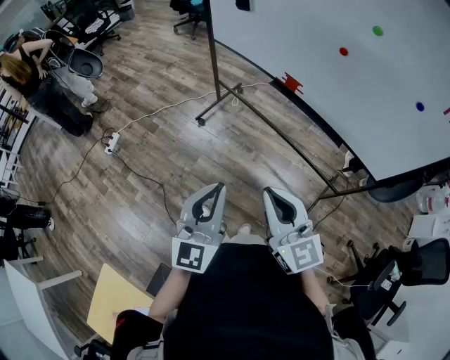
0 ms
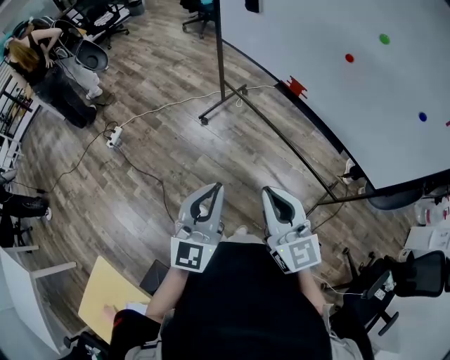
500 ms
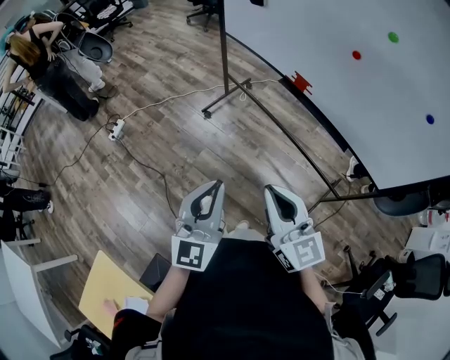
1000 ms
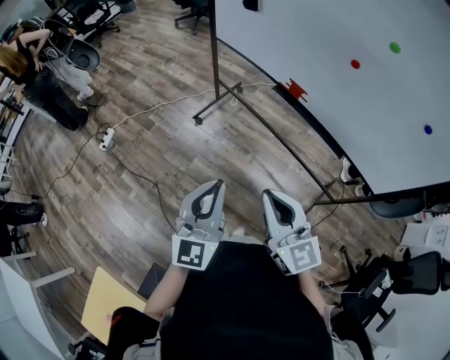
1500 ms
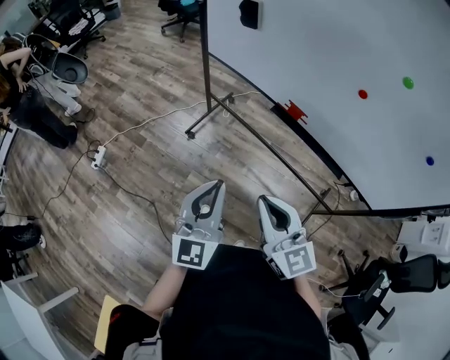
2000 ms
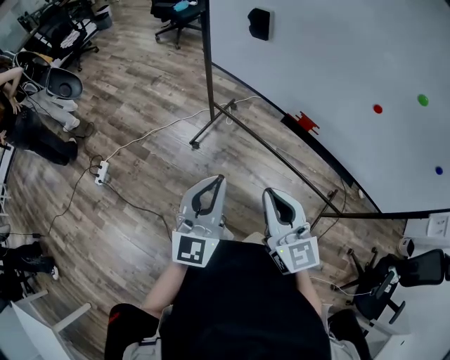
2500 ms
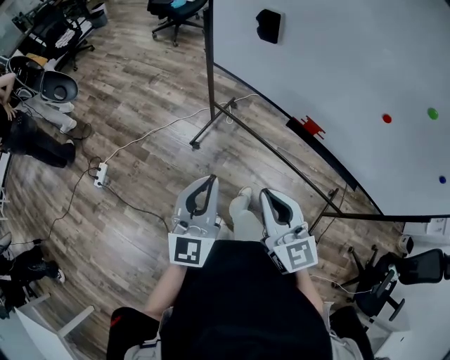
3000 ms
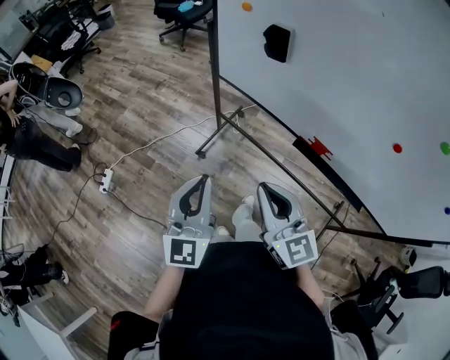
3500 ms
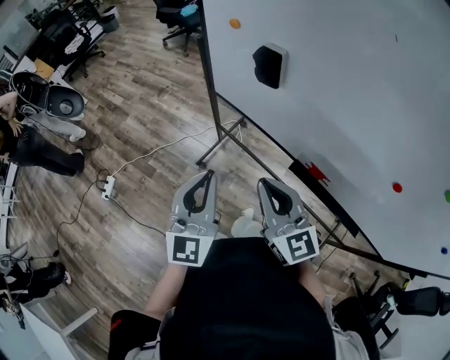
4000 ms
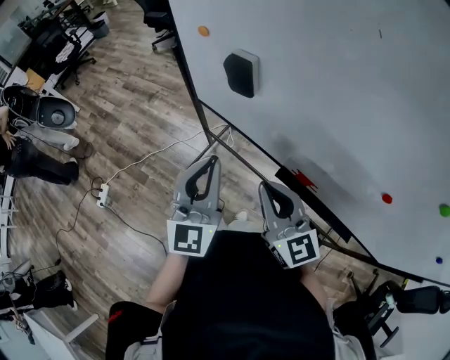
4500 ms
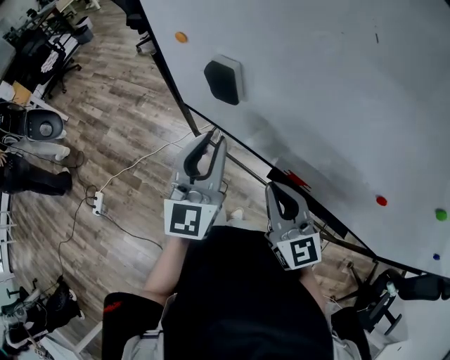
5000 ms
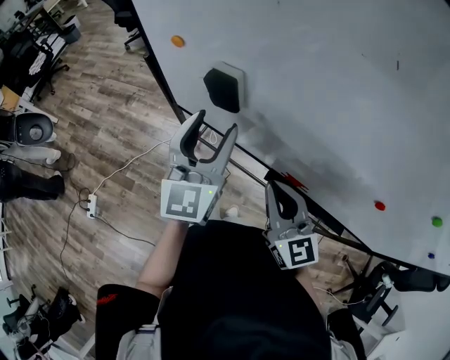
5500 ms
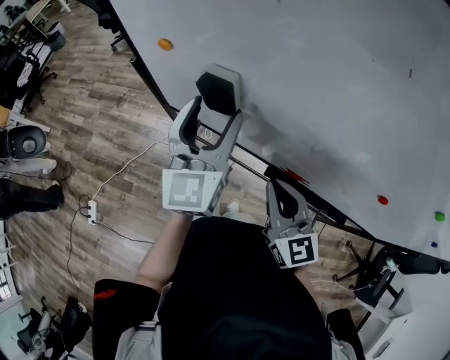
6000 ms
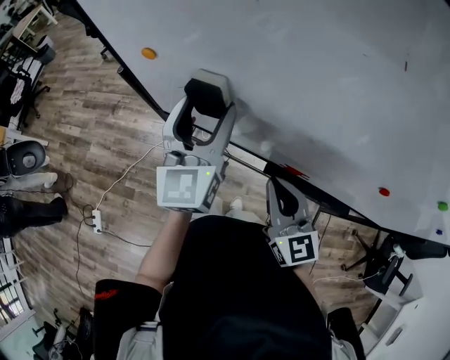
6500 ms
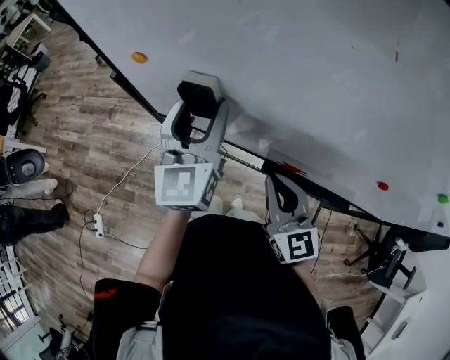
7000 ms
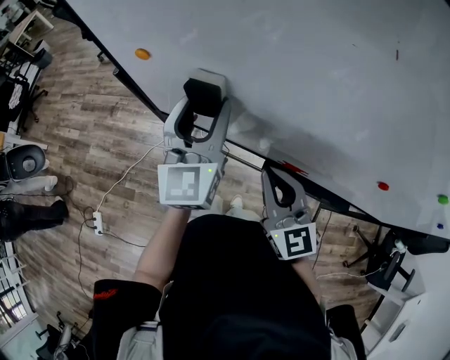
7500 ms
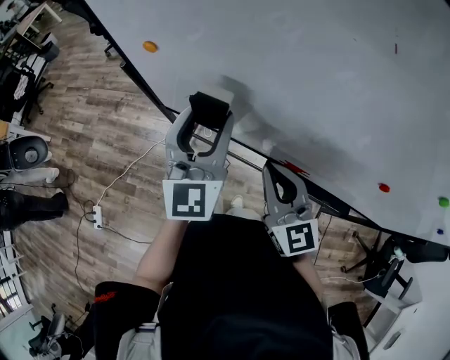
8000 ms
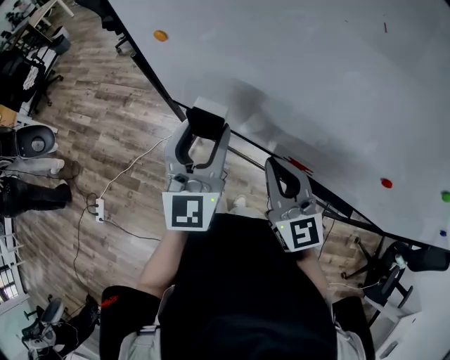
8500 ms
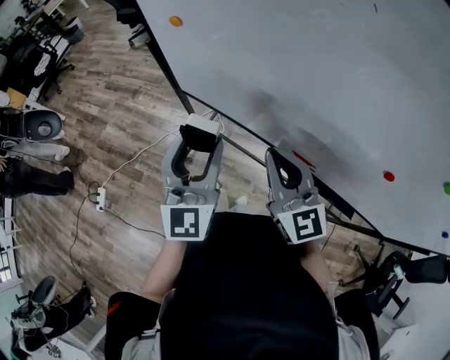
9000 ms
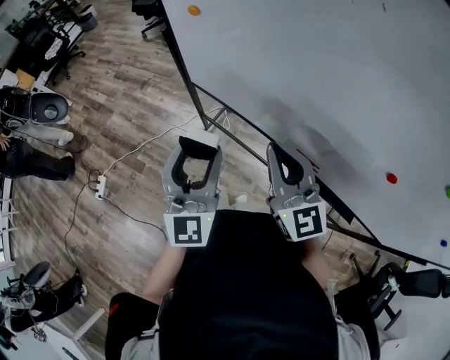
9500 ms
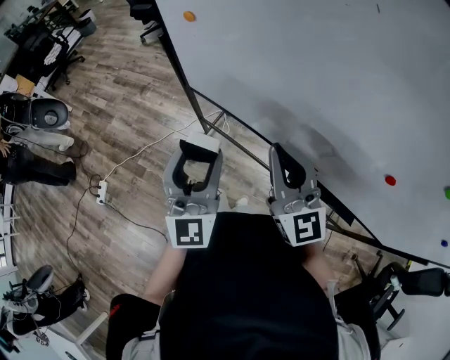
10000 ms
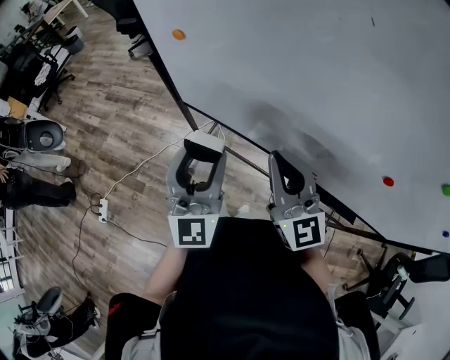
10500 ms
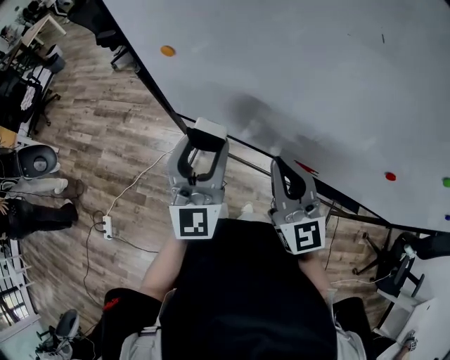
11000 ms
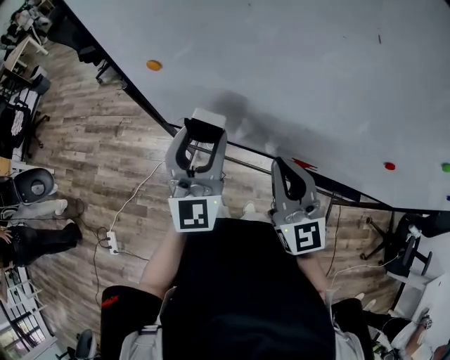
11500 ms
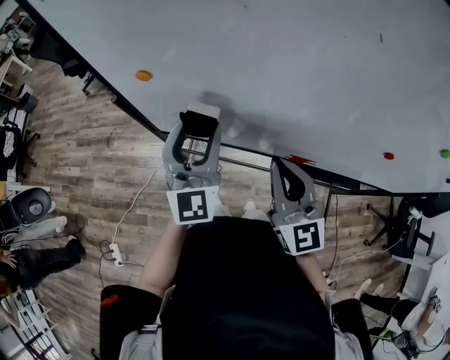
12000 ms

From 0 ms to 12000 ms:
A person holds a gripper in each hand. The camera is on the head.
From 0 ms to 2000 ms: Both grippers move forward, some 15 cm.
From 2000 ms to 4000 ms: Both grippers move forward, roughly 30 cm.
From 4000 ms to 6000 ms: The left gripper is displaced forward and to the right by approximately 25 cm, and opens its fingers. The right gripper travels to the right and forward by some 15 cm, and changes its angle by approximately 20 degrees.
From 6000 ms to 8000 ms: The grippers stay close to where they were, moving slightly.
From 8000 ms to 10000 ms: The right gripper moves upward, about 5 cm; the left gripper heads backward and to the left, covering about 15 cm.
From 10000 ms to 12000 ms: The left gripper travels forward by about 15 cm, and rotates roughly 20 degrees. The right gripper rotates about 30 degrees.

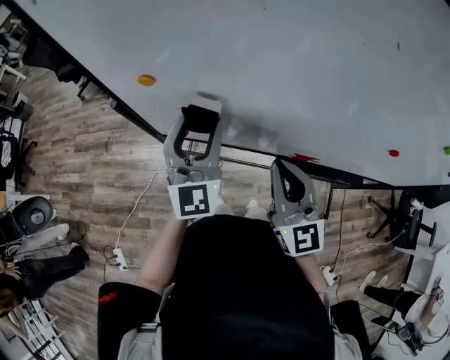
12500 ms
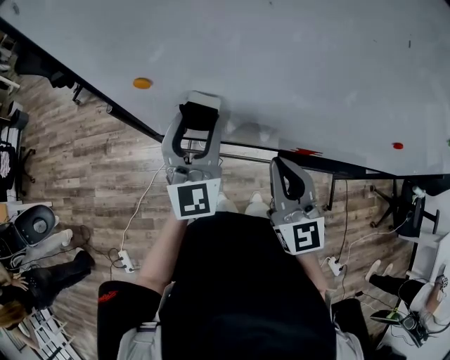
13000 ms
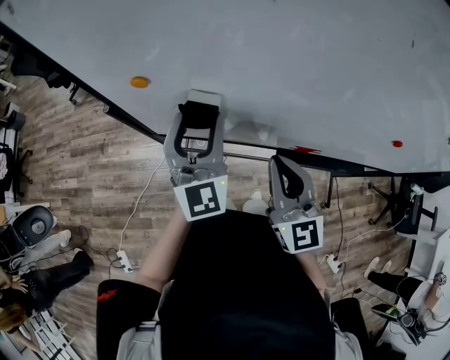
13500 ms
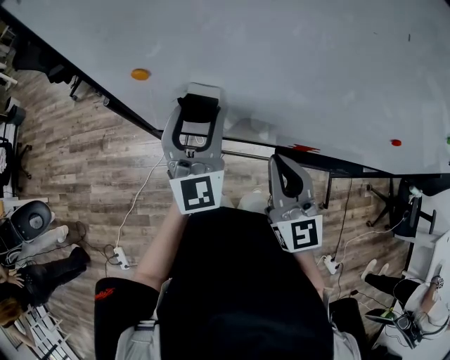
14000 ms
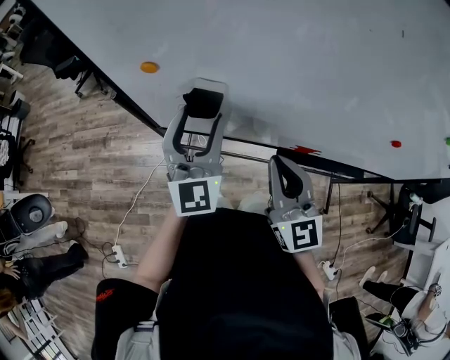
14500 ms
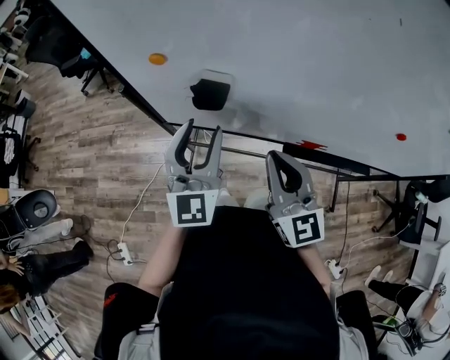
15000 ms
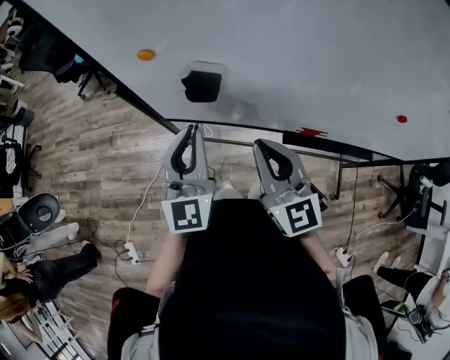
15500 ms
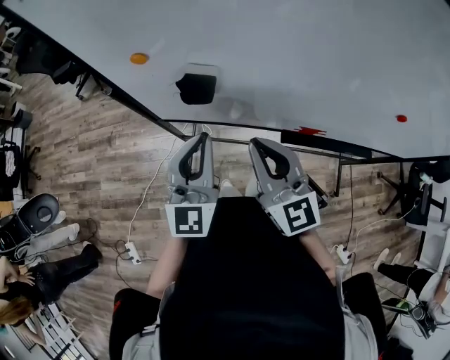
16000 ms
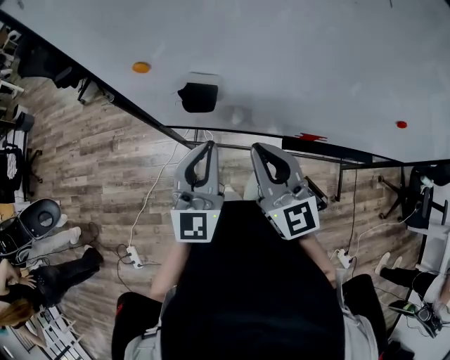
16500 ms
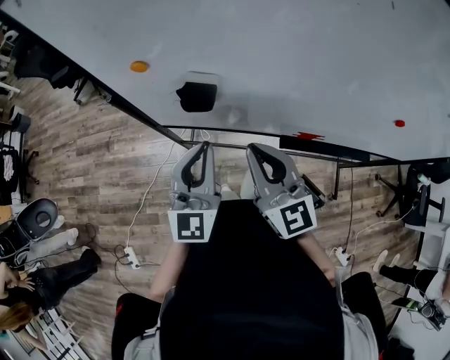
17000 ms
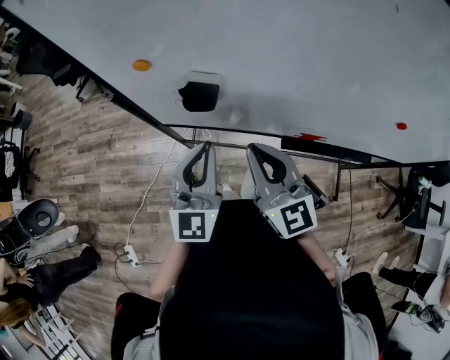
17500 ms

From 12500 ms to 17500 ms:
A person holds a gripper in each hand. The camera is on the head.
From 12500 ms to 15000 ms: The left gripper travels backward by about 5 cm.
From 15000 ms to 17500 ms: The left gripper closes.

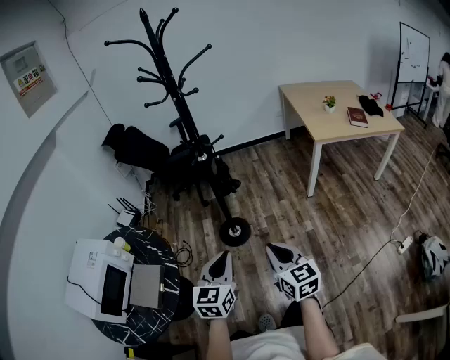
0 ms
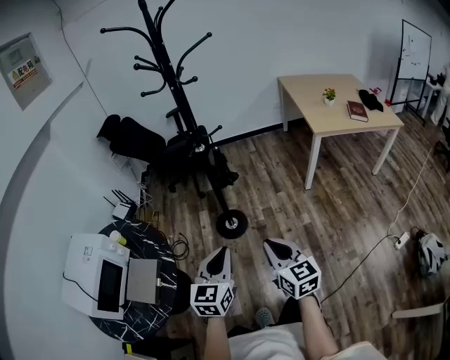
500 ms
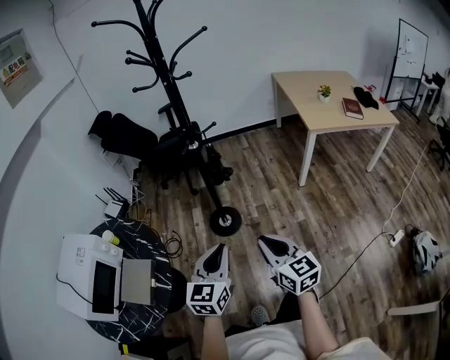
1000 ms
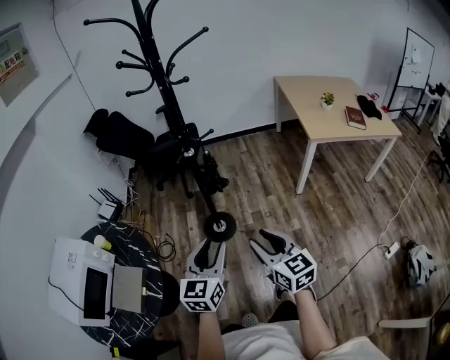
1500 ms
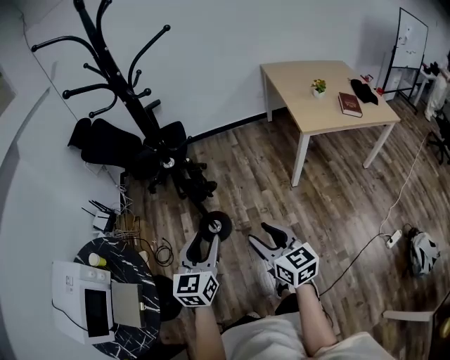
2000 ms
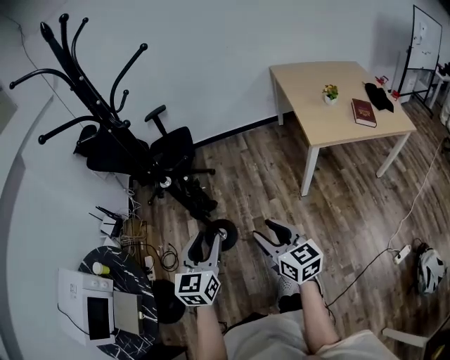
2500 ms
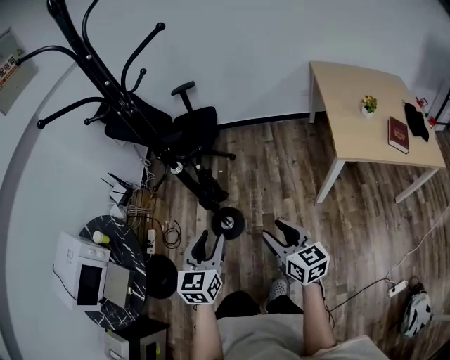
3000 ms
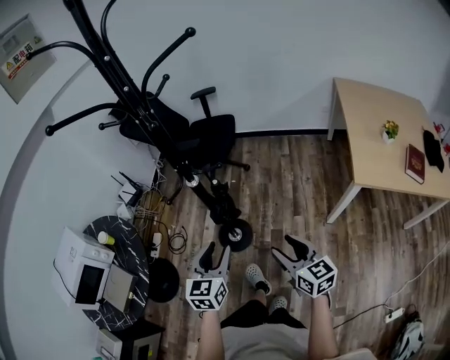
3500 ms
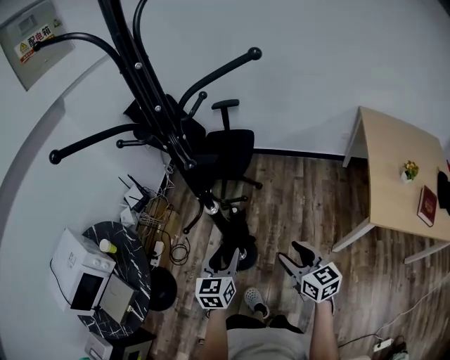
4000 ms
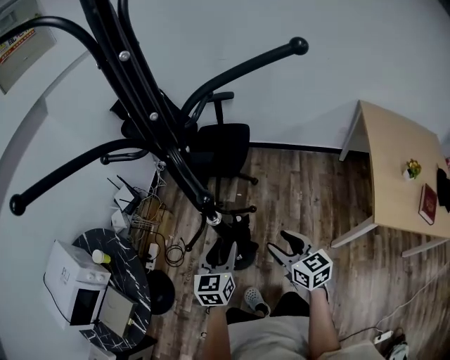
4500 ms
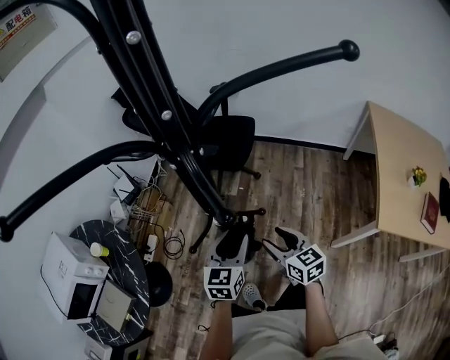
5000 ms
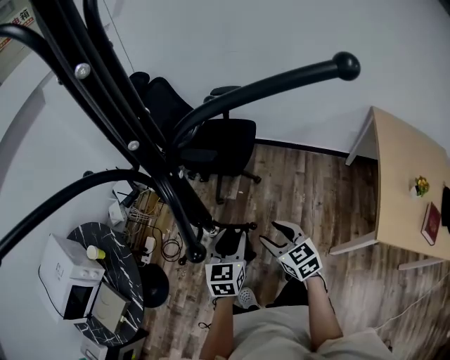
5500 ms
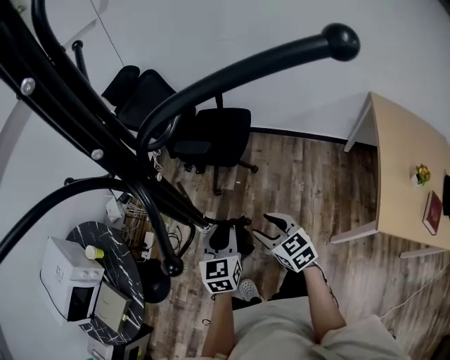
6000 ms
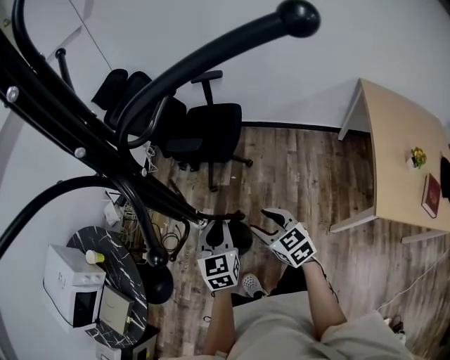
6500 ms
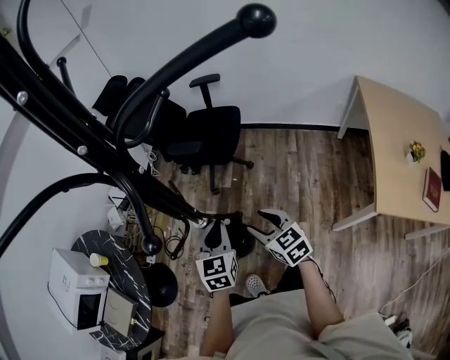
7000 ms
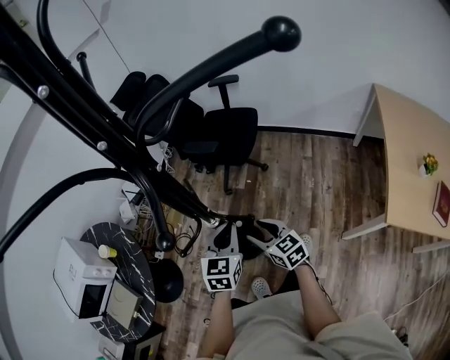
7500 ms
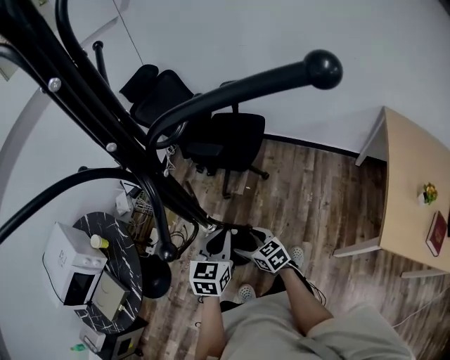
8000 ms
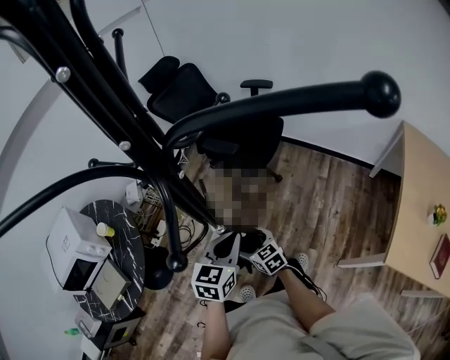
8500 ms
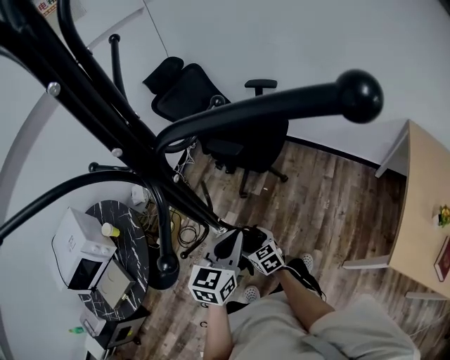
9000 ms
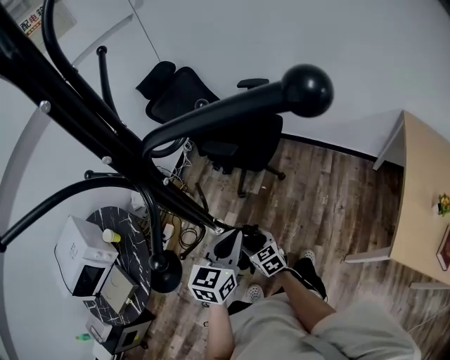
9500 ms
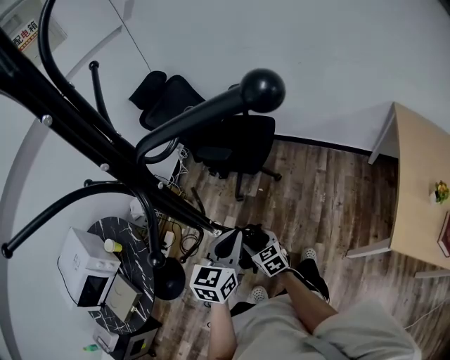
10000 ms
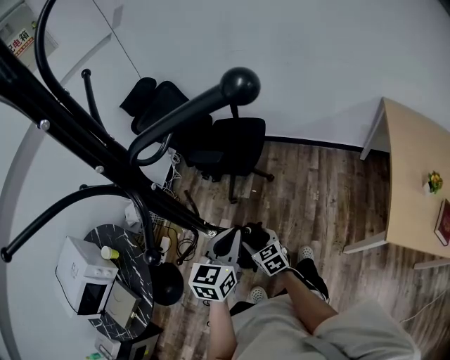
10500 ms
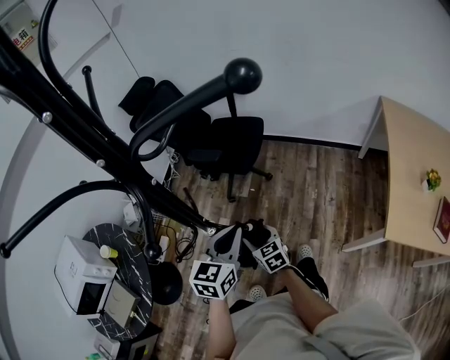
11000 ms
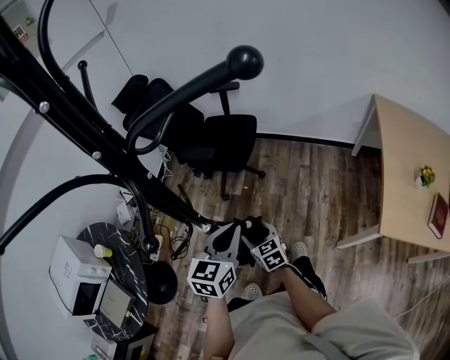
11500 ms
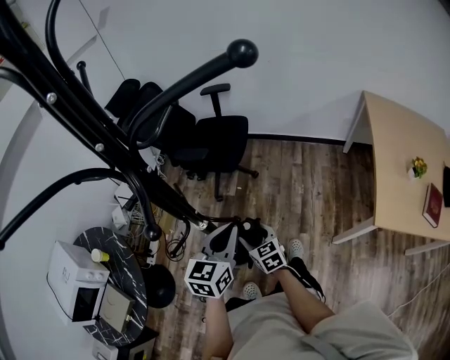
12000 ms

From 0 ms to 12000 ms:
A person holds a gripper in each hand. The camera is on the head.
From 0 ms to 2000 ms: The left gripper shifts about 20 cm forward, and opens up, while the right gripper moves forward and to the right, approximately 20 cm, and opens up.
From 2000 ms to 4000 ms: Both grippers travel together forward, approximately 30 cm. The left gripper changes its angle by roughly 30 degrees. The right gripper changes its angle by some 20 degrees.
From 4000 ms to 6000 ms: The grippers both shift forward by about 20 cm. The right gripper changes its angle by about 20 degrees.
From 6000 ms to 8000 ms: The right gripper travels downward and to the left by about 15 cm.
From 8000 ms to 10000 ms: The left gripper shifts by roughly 5 cm.
From 10000 ms to 12000 ms: The right gripper changes place by some 5 cm.
